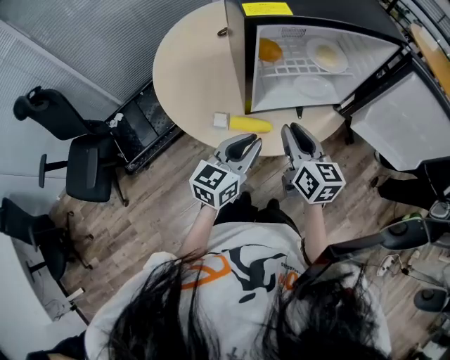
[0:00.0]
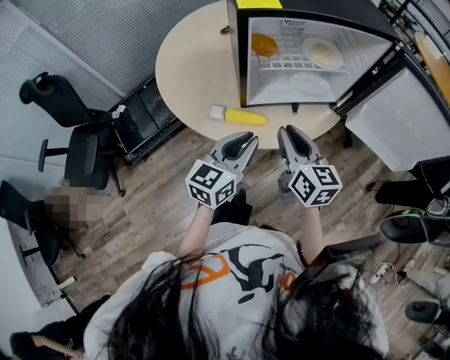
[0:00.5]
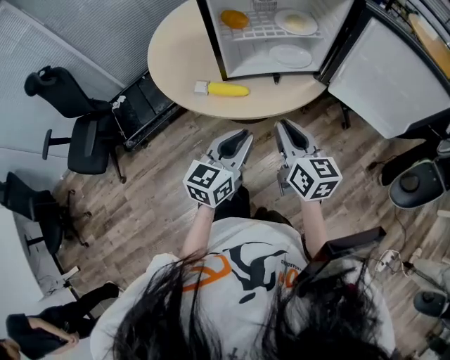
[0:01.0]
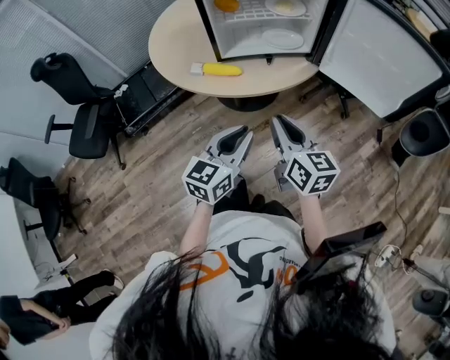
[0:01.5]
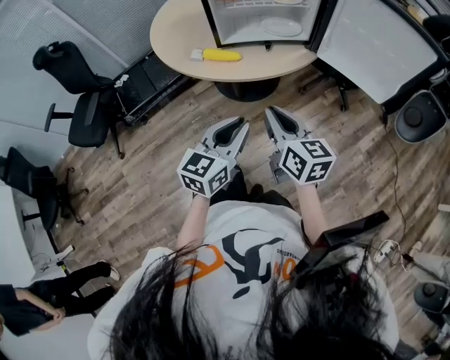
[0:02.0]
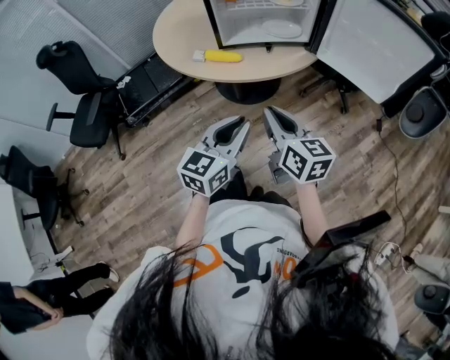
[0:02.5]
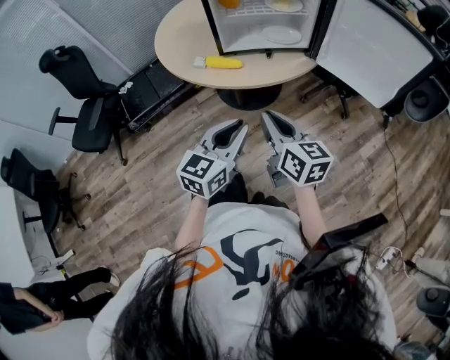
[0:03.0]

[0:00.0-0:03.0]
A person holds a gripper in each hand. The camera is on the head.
0:00.0 to 0:01.5: The grippers both shift backward and to the right by roughly 25 cm.
0:01.5 to 0:03.0: The right gripper shifts by some 5 cm.

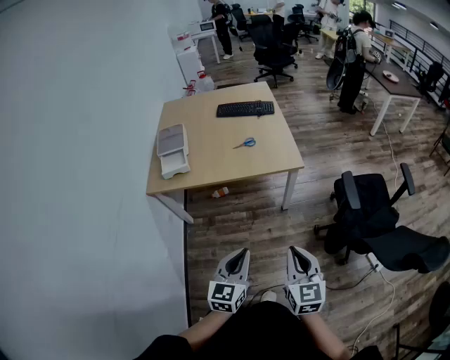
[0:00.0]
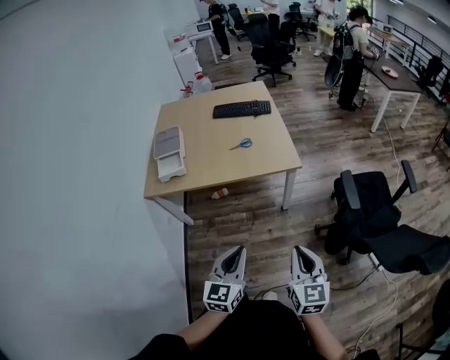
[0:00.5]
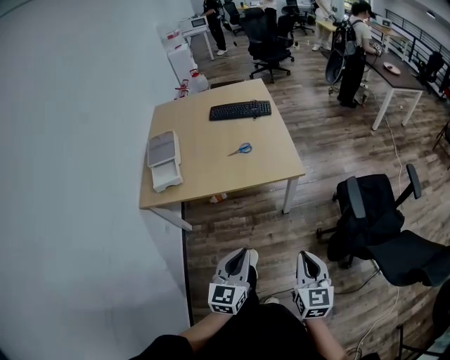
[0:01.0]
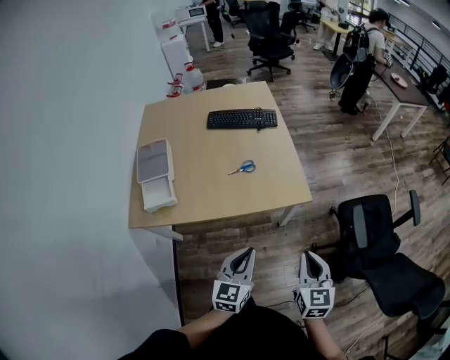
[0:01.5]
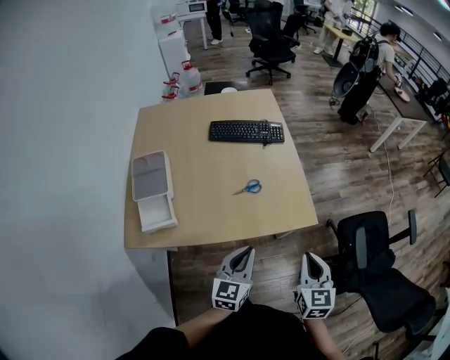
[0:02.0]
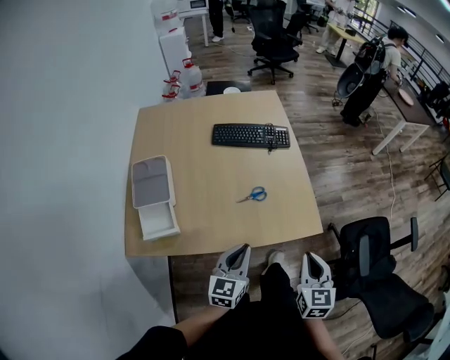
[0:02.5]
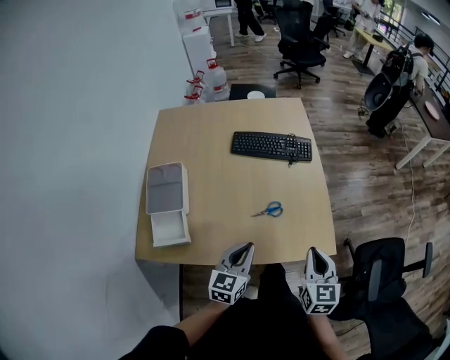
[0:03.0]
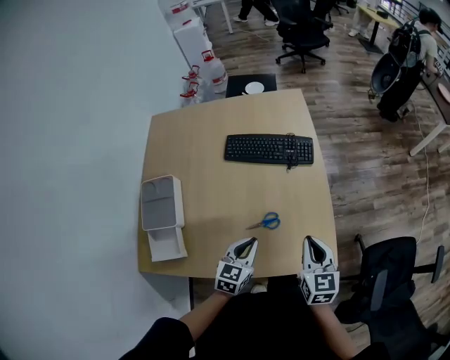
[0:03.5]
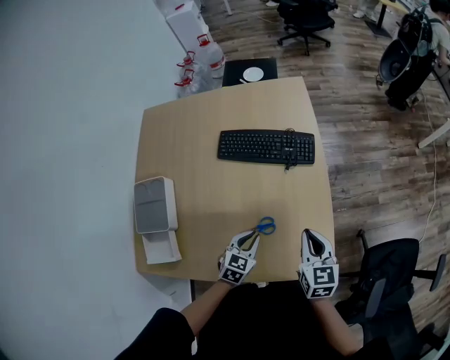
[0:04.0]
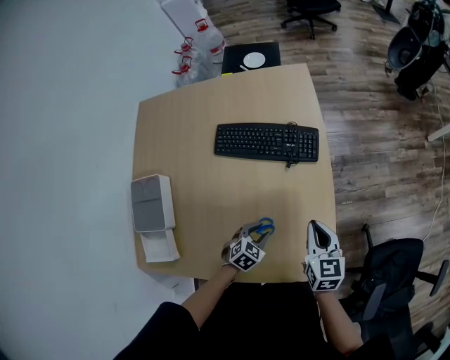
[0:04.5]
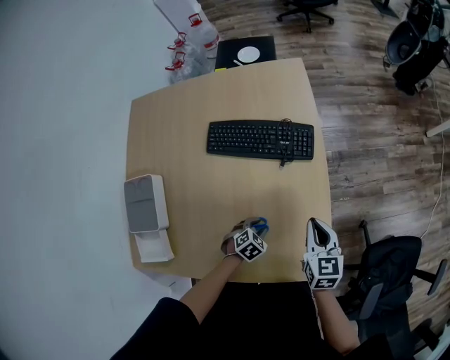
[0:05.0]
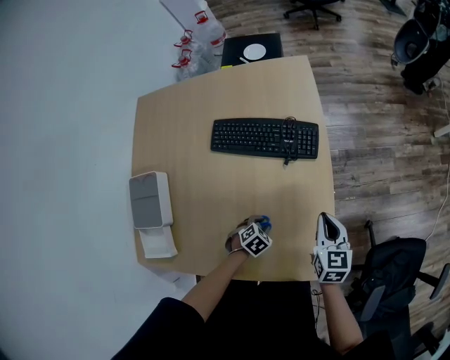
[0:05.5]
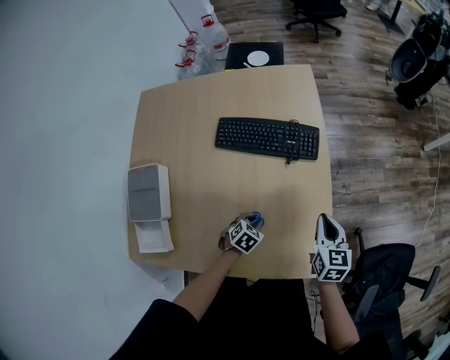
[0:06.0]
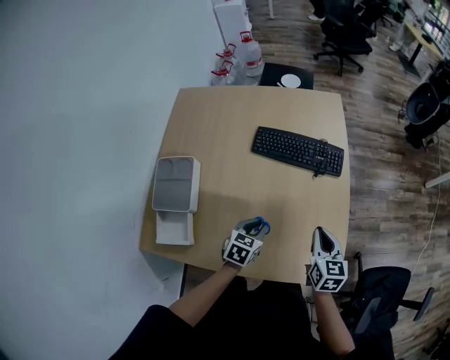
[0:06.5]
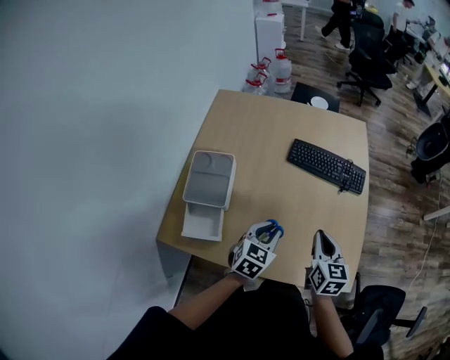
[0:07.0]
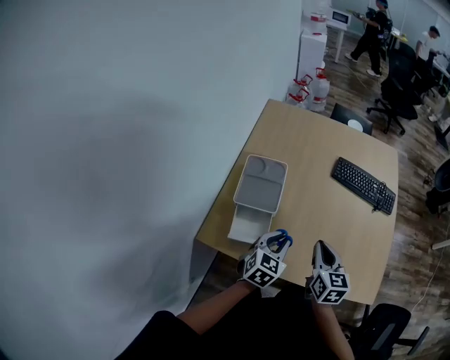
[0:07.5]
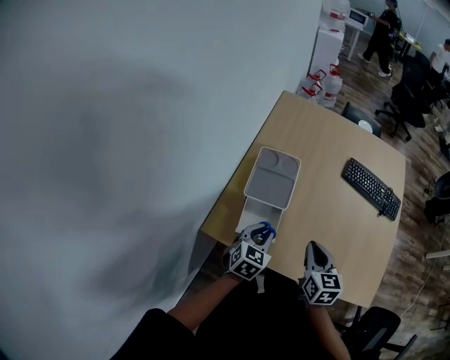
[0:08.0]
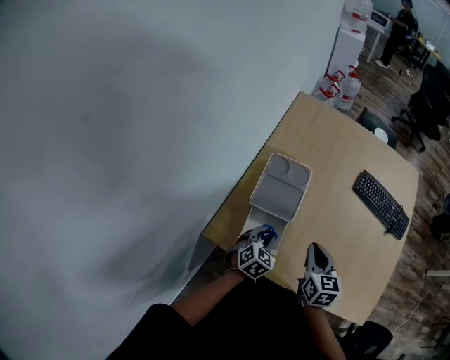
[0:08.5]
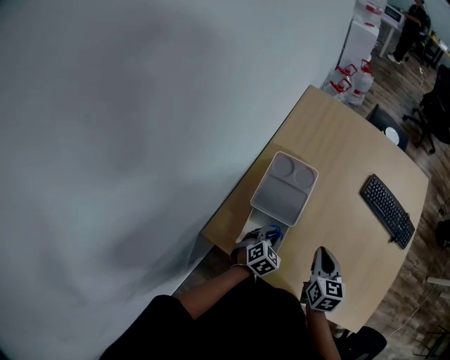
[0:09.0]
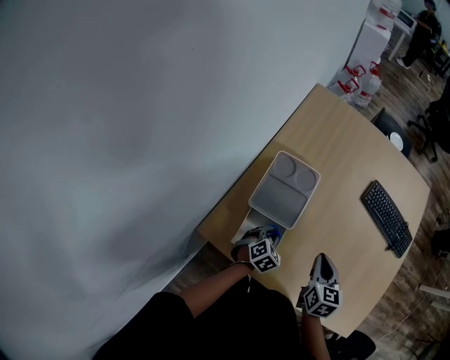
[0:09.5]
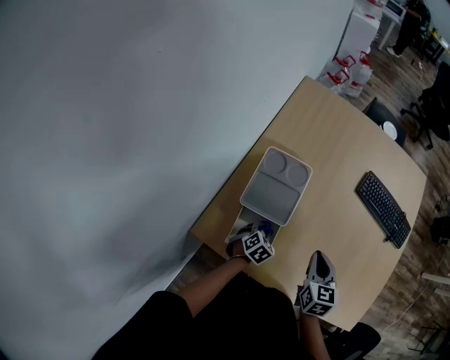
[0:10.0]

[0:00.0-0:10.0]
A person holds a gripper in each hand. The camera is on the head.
0:00.0 to 0:02.0: The two grippers go about 35 cm forward.
0:02.0 to 0:04.0: The right gripper heads forward, covering about 35 cm; the left gripper goes about 35 cm forward and downward, and changes its angle by some 30 degrees.
0:04.0 to 0:06.0: The right gripper shifts some 10 cm forward and downward, while the left gripper shifts some 10 cm downward, and swivels approximately 20 degrees.
0:06.0 to 0:08.0: The pair of grippers is taken roughly 50 cm. The right gripper rotates some 20 degrees. The left gripper turns by roughly 40 degrees.
0:08.0 to 0:10.0: The left gripper shifts some 20 cm downward, and turns by about 30 degrees; the right gripper travels forward and downward by some 10 cm.

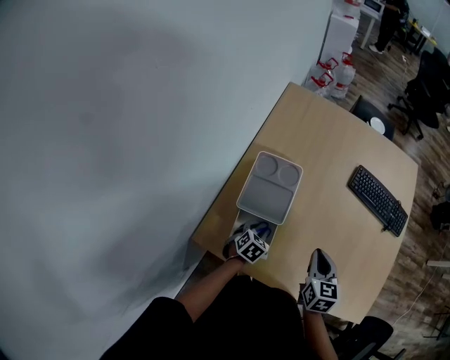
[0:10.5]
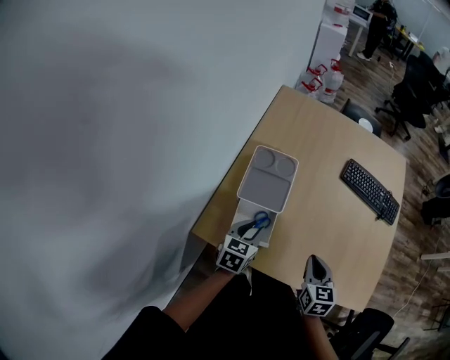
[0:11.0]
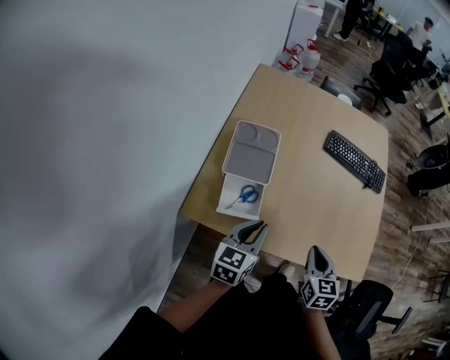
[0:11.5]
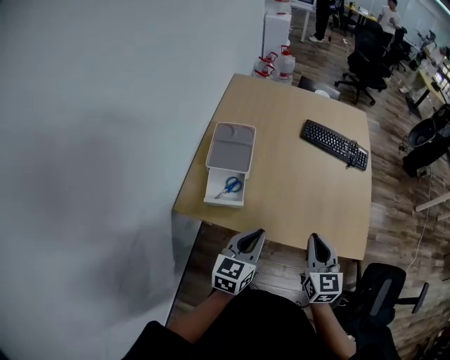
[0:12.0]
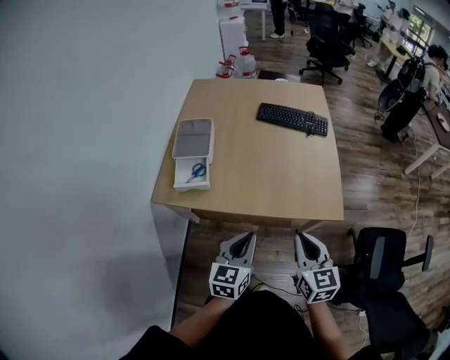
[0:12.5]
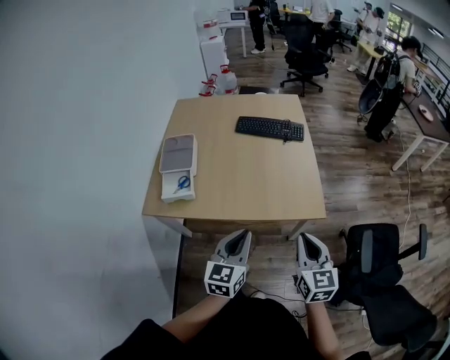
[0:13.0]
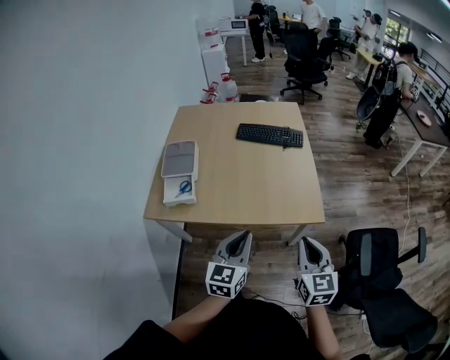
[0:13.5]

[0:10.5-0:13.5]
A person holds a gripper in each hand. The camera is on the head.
0:10.5 to 0:12.0: The right gripper is displaced backward, to the right and upward by some 25 cm, while the left gripper travels upward, backward and to the right by some 35 cm, tilts its fingers roughly 40 degrees upward, and closes its fingers.
0:12.0 to 0:13.5: The two grippers go roughly 25 cm to the right and backward.

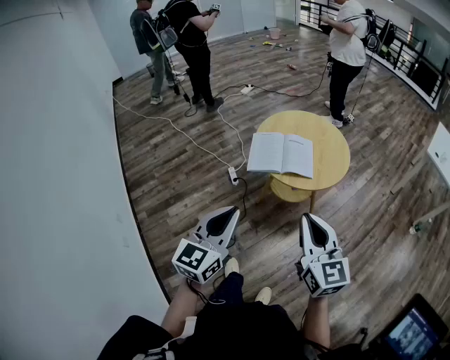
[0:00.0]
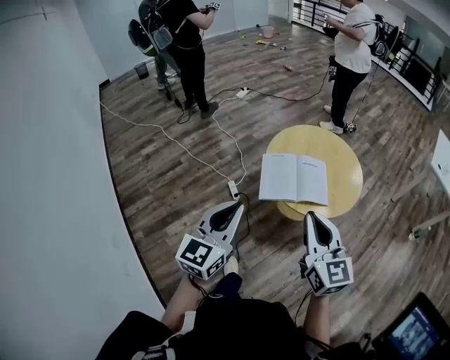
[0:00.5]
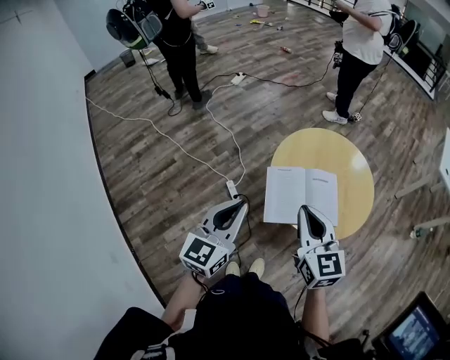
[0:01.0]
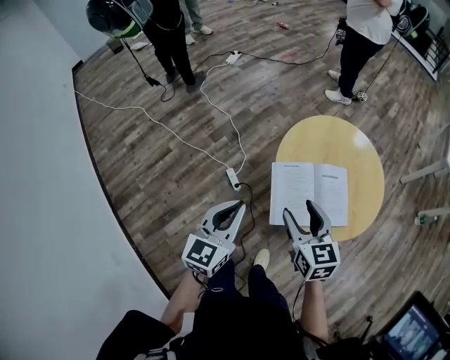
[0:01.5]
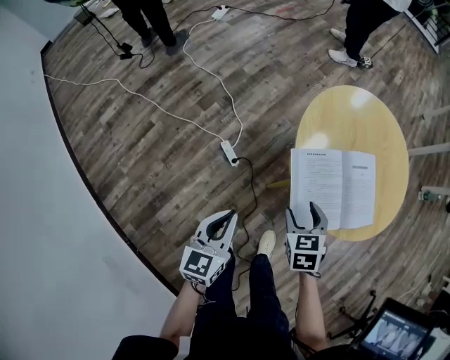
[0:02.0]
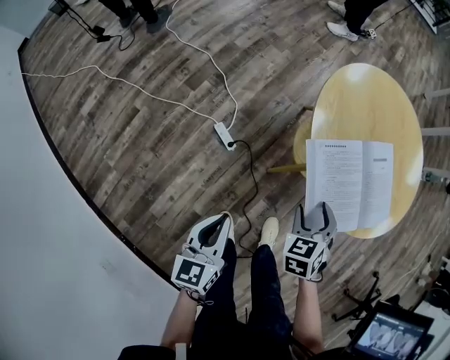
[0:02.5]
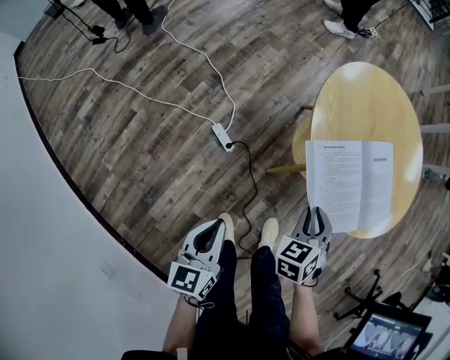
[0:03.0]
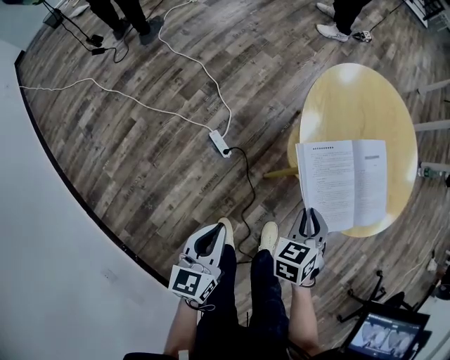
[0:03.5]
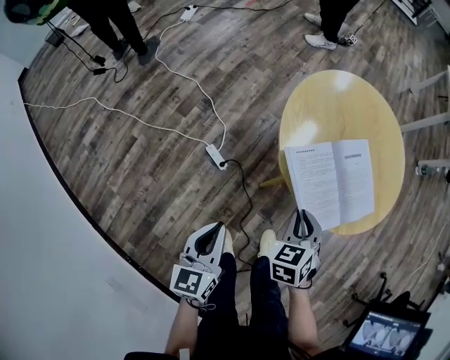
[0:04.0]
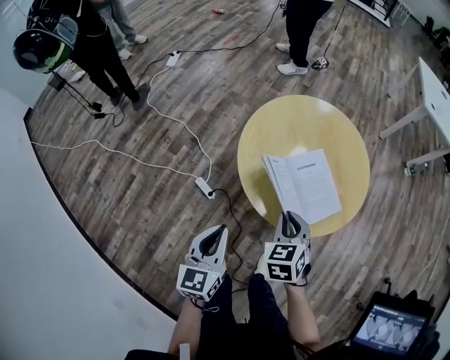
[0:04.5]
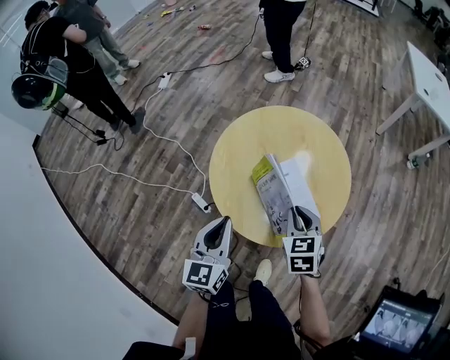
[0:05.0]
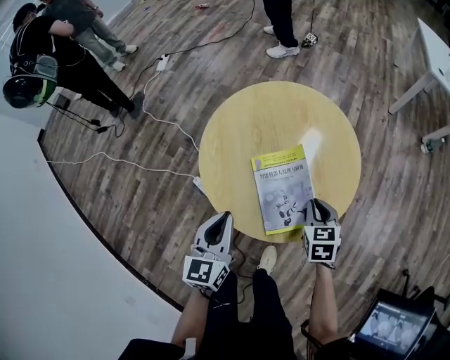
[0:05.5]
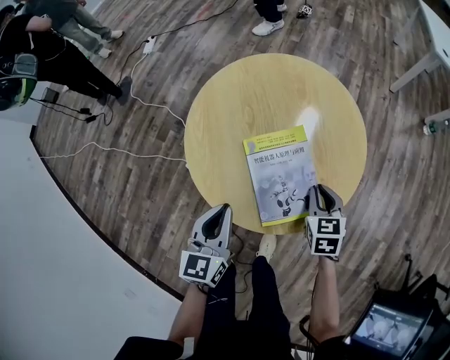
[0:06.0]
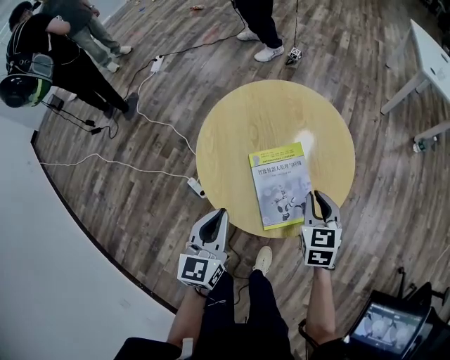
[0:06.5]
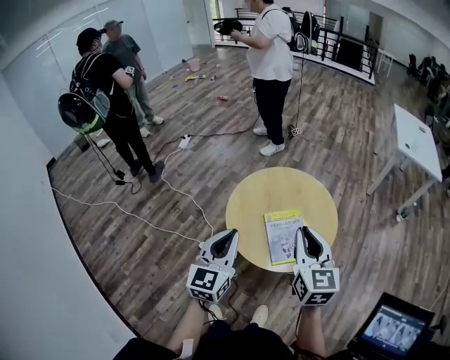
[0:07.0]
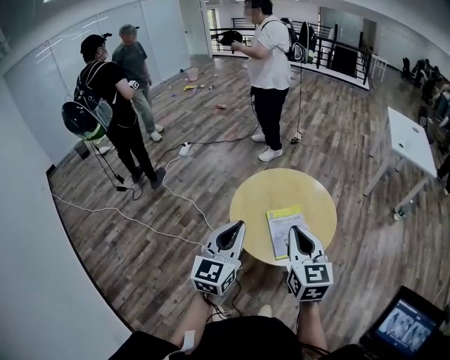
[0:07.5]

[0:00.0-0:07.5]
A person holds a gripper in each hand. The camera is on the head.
0:00.0 to 0:02.0: The pair of grippers is taken forward and to the left, approximately 50 cm. The two grippers go some 30 cm downward. The right gripper points its fingers approximately 50 degrees further downward, and opens. Meanwhile the left gripper turns by about 20 degrees.
0:02.0 to 0:04.0: The left gripper travels downward and back again, approximately 10 cm each way. The right gripper closes.
0:04.0 to 0:05.5: The two grippers go roughly 30 cm to the right and forward. The right gripper changes its angle by roughly 20 degrees.
0:05.5 to 0:07.5: Both grippers move upward, roughly 30 cm. The right gripper points its fingers approximately 40 degrees further upward; the left gripper swivels approximately 20 degrees.

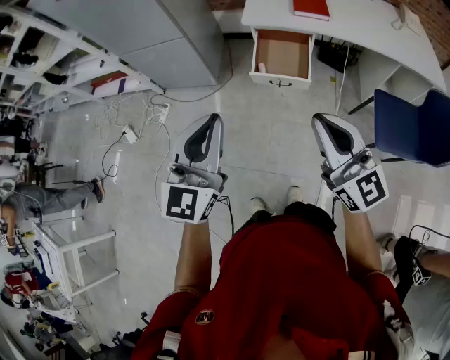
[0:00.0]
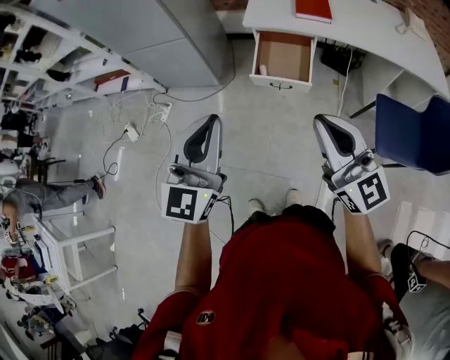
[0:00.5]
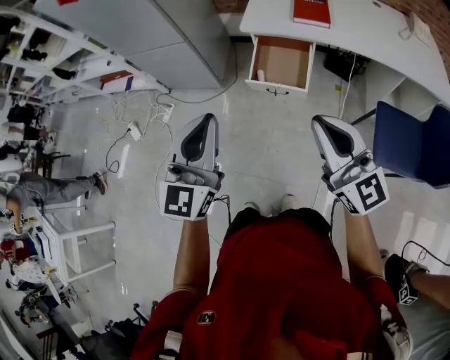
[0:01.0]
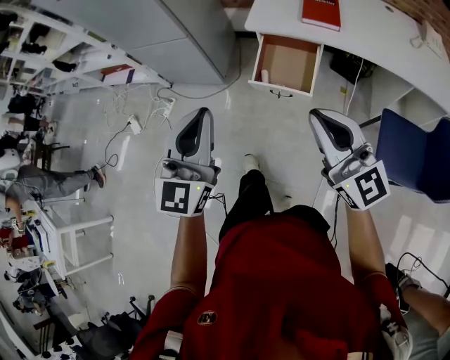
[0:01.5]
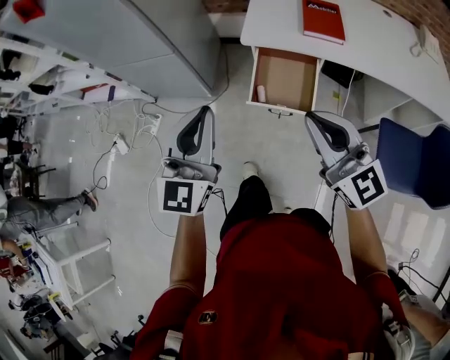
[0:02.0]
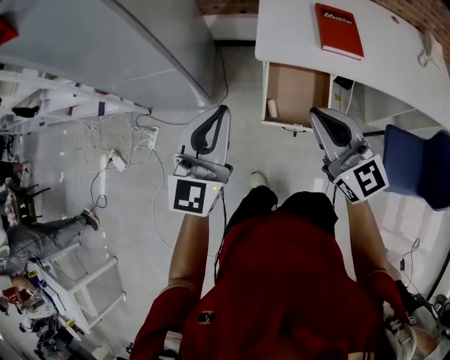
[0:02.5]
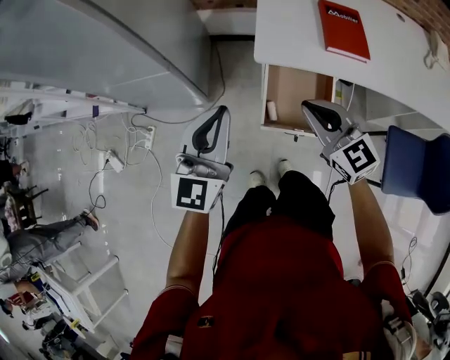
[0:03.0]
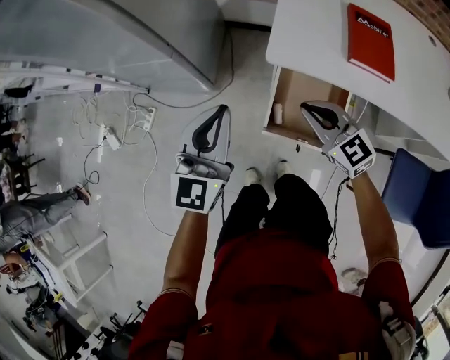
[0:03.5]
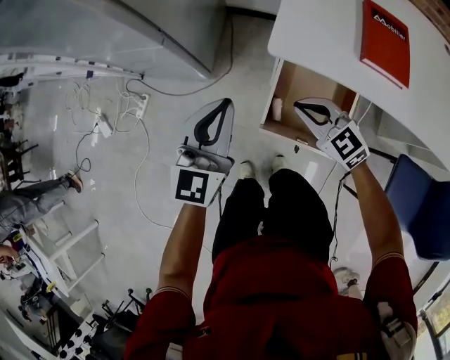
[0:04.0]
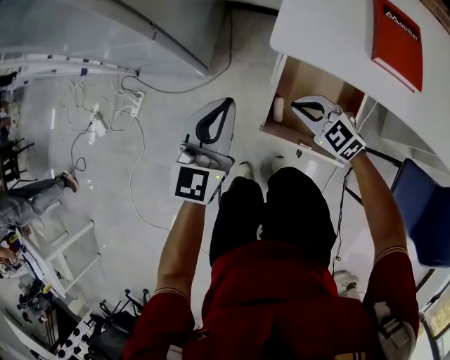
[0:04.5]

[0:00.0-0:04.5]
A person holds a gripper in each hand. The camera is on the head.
0:00.0 to 0:02.0: The grippers both shift forward by about 20 cm.
0:02.0 to 0:04.5: The left gripper travels forward and downward by about 35 cm. Meanwhile the right gripper travels downward and forward by roughly 50 cm, and angles its fingers downward, by some 40 degrees.
